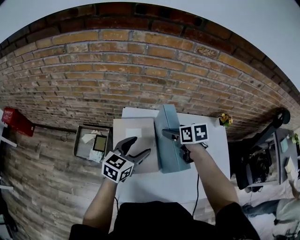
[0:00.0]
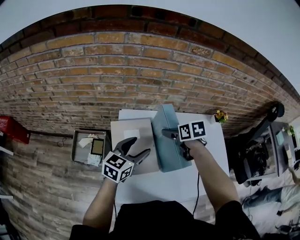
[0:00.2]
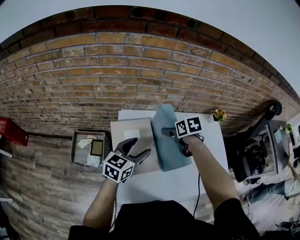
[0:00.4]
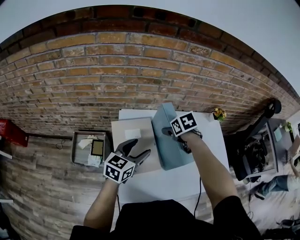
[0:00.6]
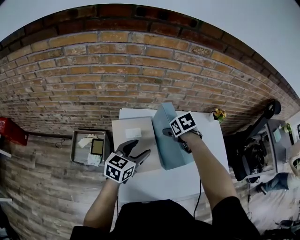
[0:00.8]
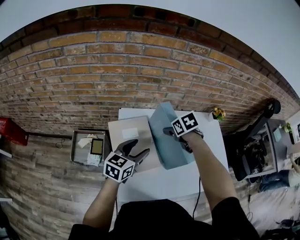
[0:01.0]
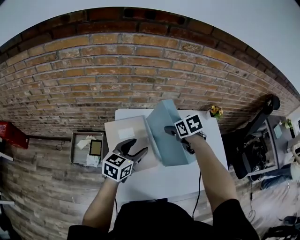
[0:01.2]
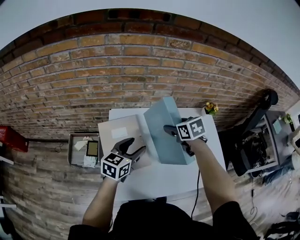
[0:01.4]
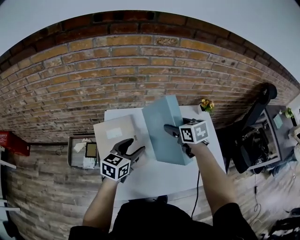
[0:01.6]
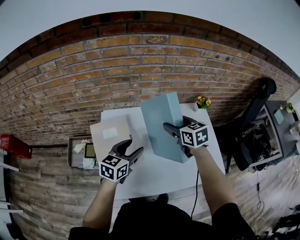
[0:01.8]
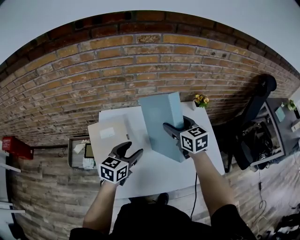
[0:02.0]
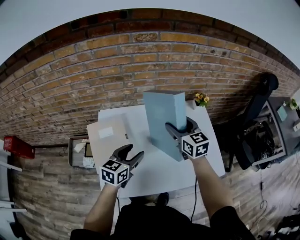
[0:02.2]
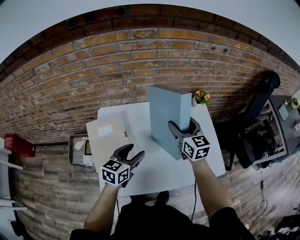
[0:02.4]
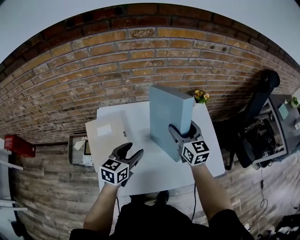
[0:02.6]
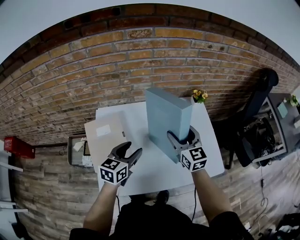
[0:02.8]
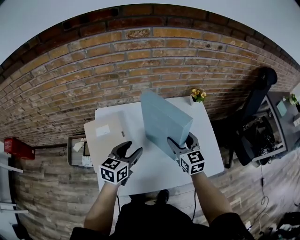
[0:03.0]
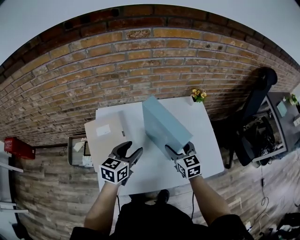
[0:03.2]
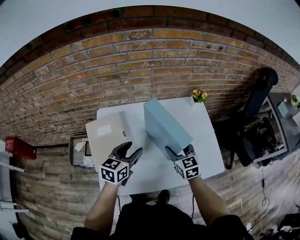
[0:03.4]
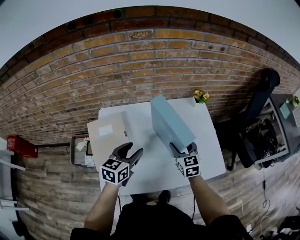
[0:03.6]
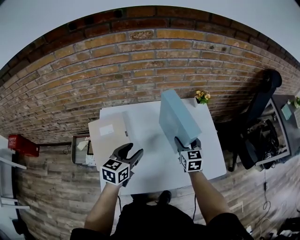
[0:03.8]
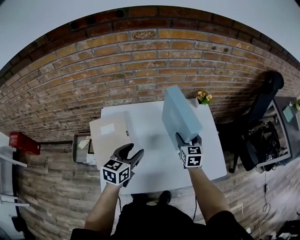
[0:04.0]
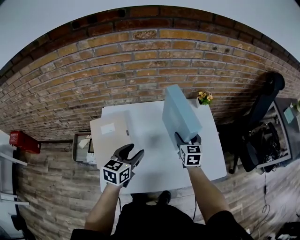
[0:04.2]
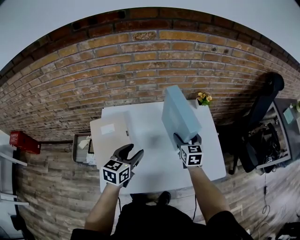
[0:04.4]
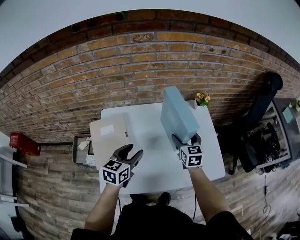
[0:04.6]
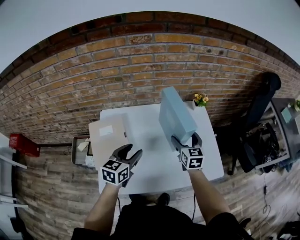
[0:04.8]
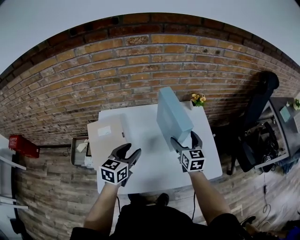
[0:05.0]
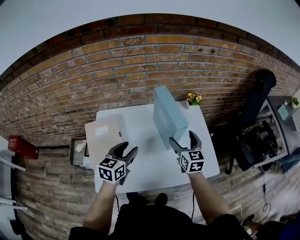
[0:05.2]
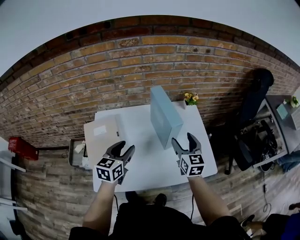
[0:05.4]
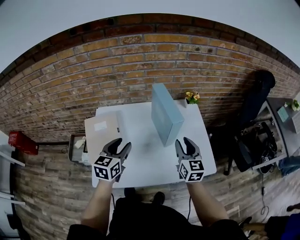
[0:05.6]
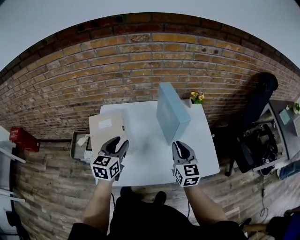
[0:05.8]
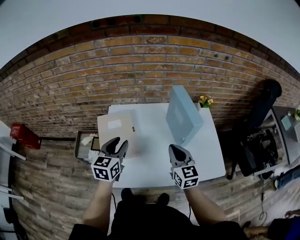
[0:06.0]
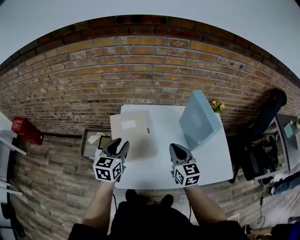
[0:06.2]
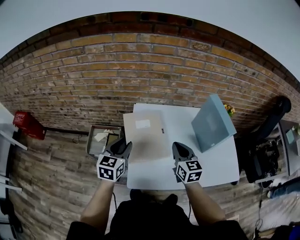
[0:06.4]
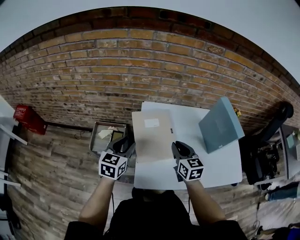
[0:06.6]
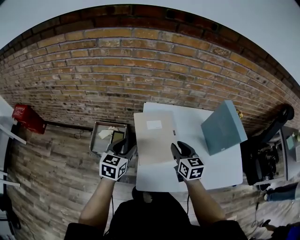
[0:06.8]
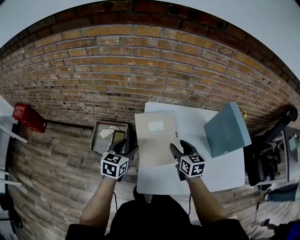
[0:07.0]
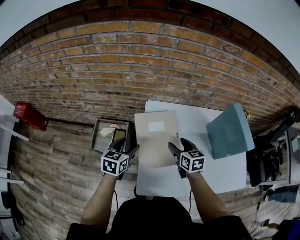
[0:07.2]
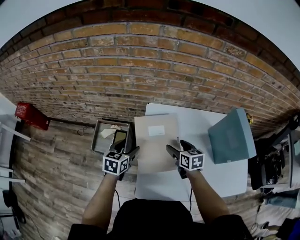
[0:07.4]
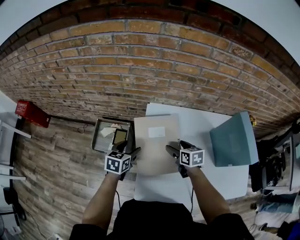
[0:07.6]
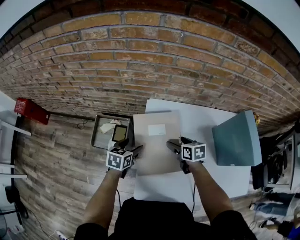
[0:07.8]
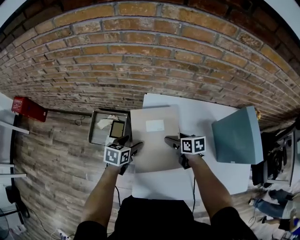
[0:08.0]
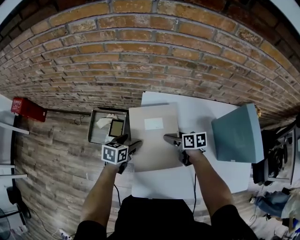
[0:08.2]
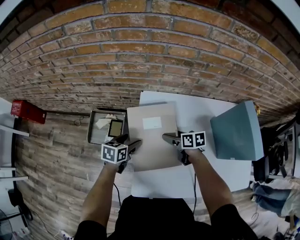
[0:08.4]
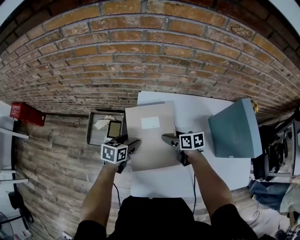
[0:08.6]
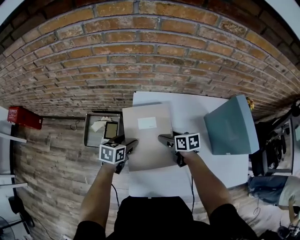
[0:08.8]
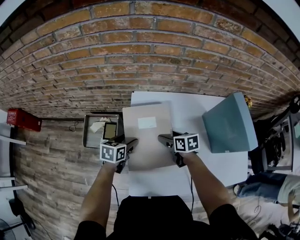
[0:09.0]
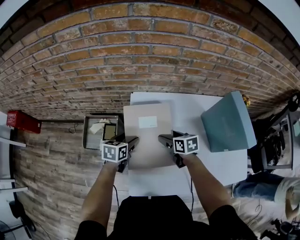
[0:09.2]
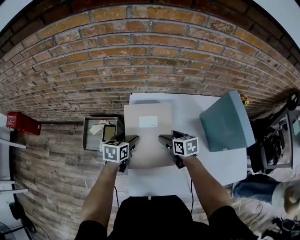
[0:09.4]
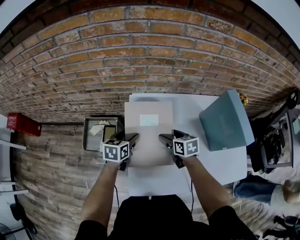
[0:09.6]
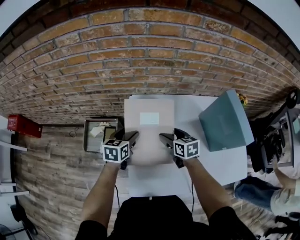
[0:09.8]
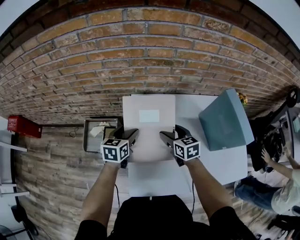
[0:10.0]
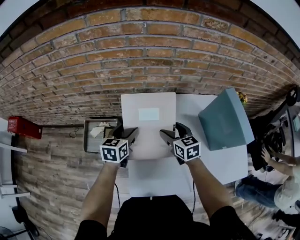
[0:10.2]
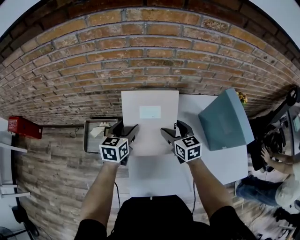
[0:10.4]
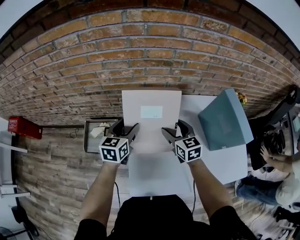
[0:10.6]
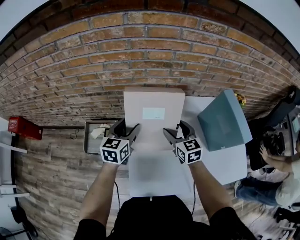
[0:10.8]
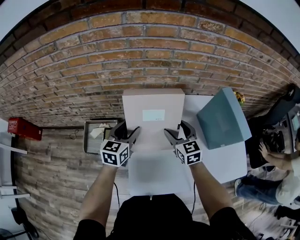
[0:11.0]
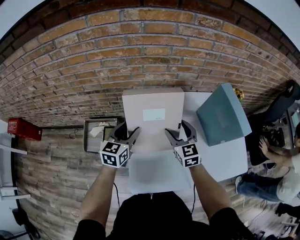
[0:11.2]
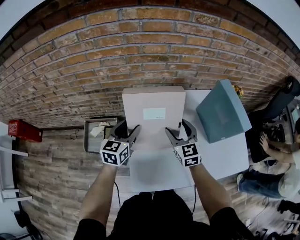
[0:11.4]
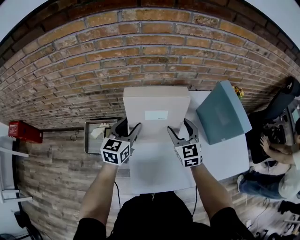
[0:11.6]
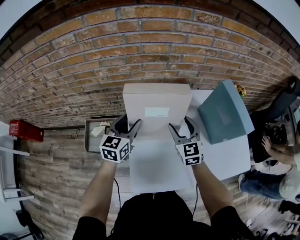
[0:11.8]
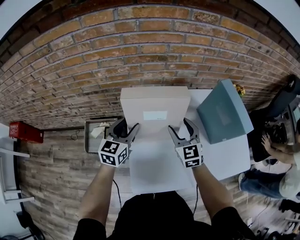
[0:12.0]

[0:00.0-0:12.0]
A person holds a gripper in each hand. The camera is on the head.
0:00.0 to 0:01.6: The two grippers go some 10 cm to the right.
0:01.6 to 0:03.0: The left gripper goes roughly 5 cm to the right; the right gripper shifts about 15 cm to the right and backward, and changes its angle by about 30 degrees.
0:03.0 to 0:04.4: The right gripper shifts by roughly 10 cm.
0:04.4 to 0:06.0: The right gripper moves backward, to the left and upward, roughly 15 cm, and closes its fingers. The left gripper travels to the left by approximately 10 cm.
0:06.0 to 0:07.6: Both grippers travel together to the left, downward and forward, roughly 30 cm. The right gripper angles its fingers downward, by about 30 degrees, and opens its fingers; the left gripper swivels about 20 degrees.
0:07.6 to 0:09.0: The left gripper moves roughly 5 cm.
0:09.0 to 0:10.4: The left gripper shifts approximately 10 cm upward and forward, and turns by about 20 degrees. The right gripper goes about 10 cm upward, and changes its angle by roughly 30 degrees.
0:10.4 to 0:12.0: The right gripper ends up about 5 cm from where it was, and swivels about 20 degrees.

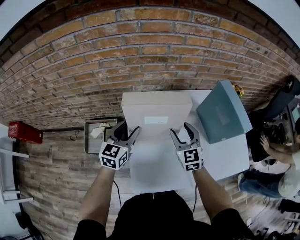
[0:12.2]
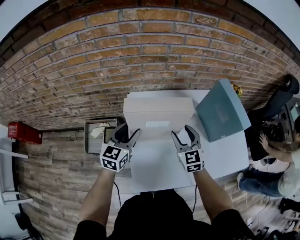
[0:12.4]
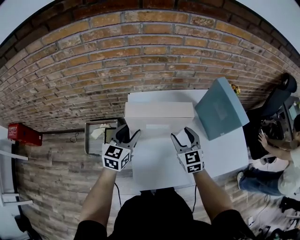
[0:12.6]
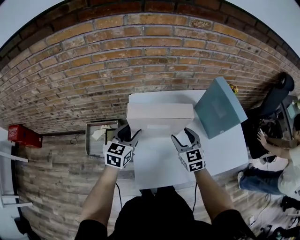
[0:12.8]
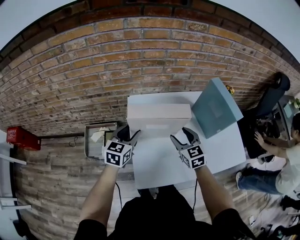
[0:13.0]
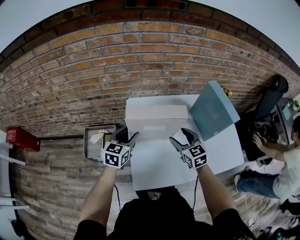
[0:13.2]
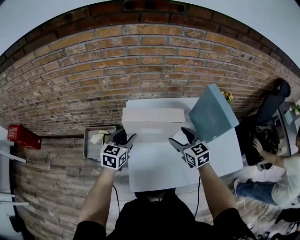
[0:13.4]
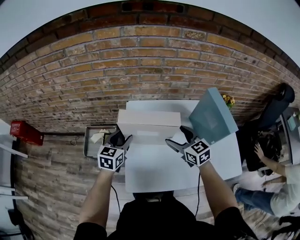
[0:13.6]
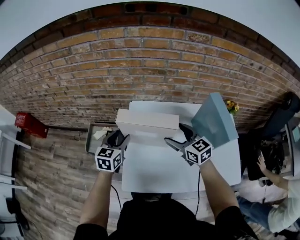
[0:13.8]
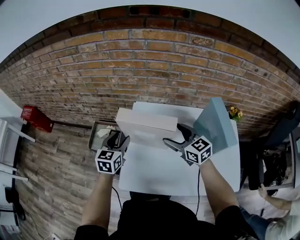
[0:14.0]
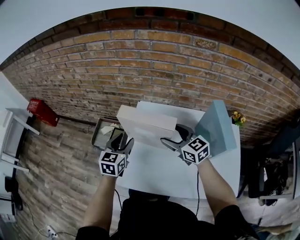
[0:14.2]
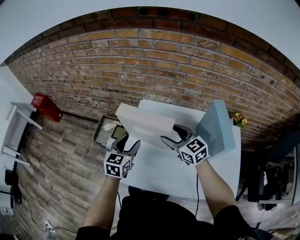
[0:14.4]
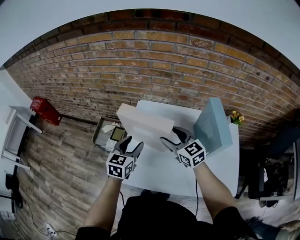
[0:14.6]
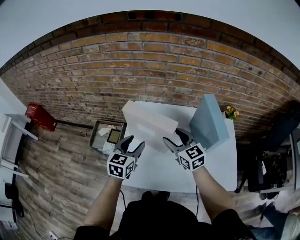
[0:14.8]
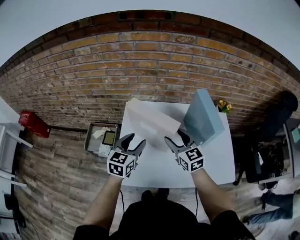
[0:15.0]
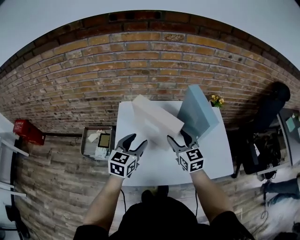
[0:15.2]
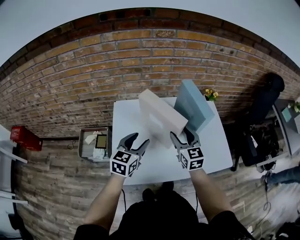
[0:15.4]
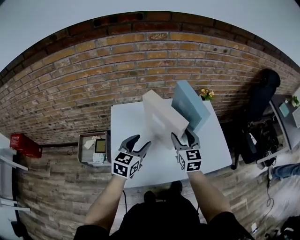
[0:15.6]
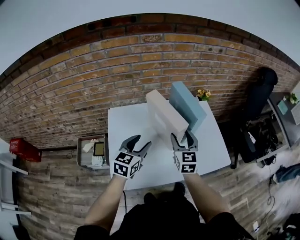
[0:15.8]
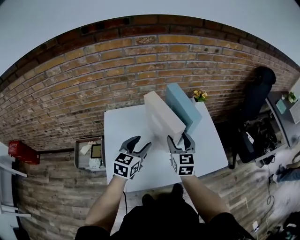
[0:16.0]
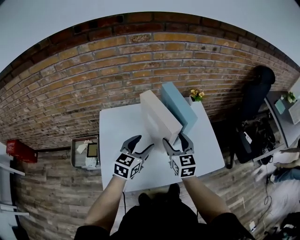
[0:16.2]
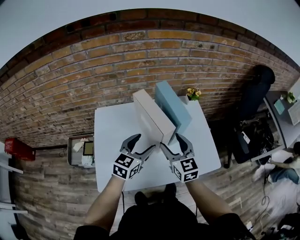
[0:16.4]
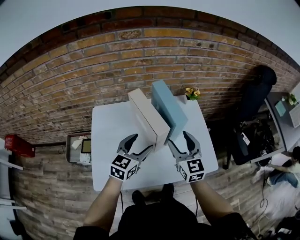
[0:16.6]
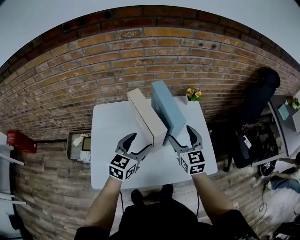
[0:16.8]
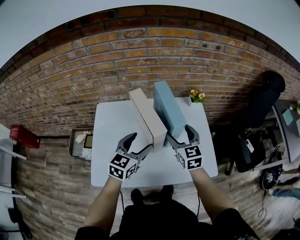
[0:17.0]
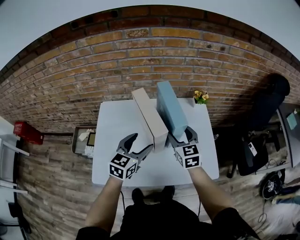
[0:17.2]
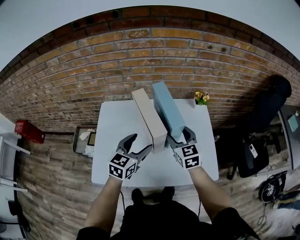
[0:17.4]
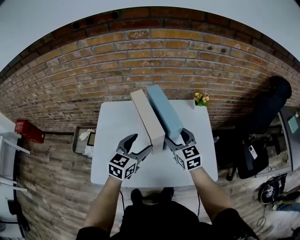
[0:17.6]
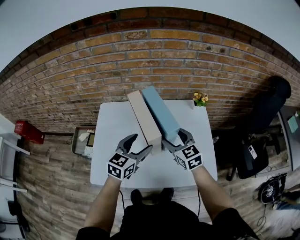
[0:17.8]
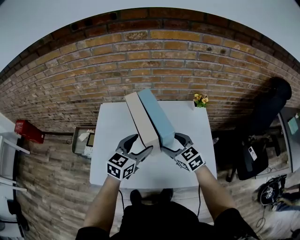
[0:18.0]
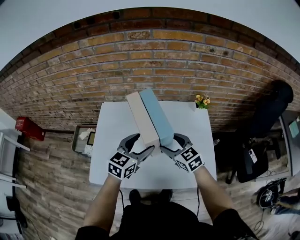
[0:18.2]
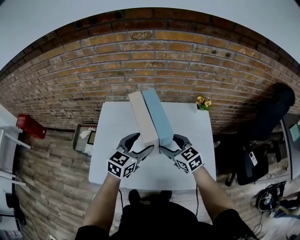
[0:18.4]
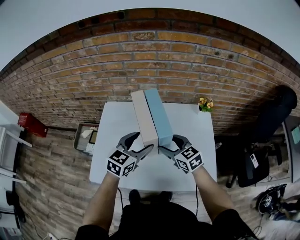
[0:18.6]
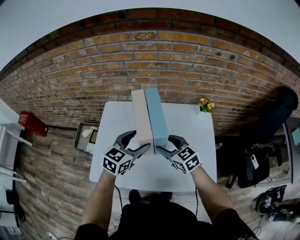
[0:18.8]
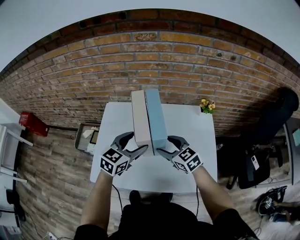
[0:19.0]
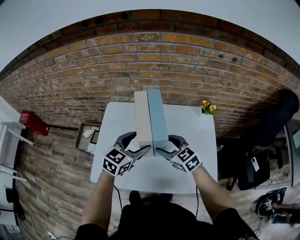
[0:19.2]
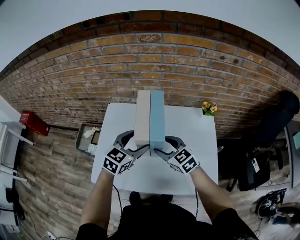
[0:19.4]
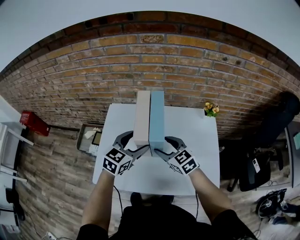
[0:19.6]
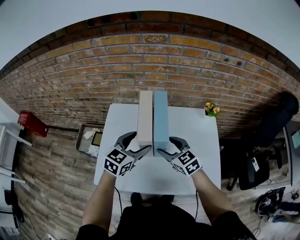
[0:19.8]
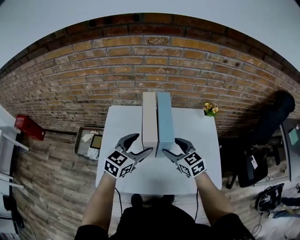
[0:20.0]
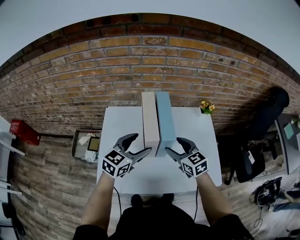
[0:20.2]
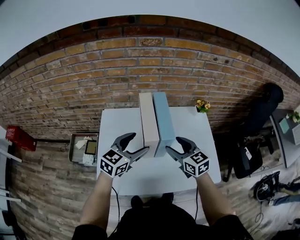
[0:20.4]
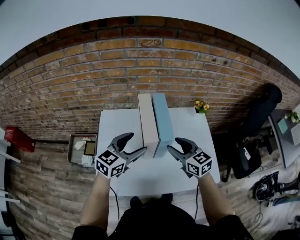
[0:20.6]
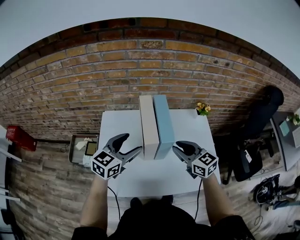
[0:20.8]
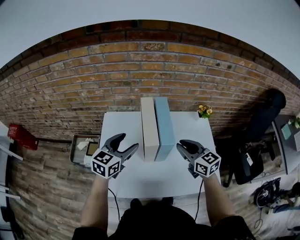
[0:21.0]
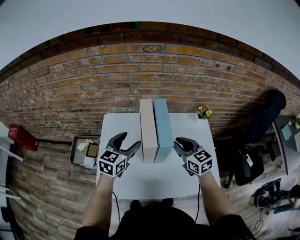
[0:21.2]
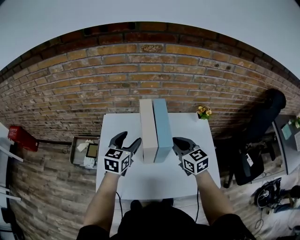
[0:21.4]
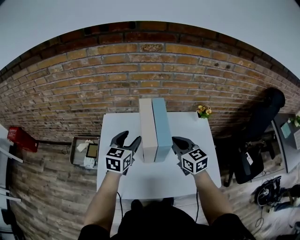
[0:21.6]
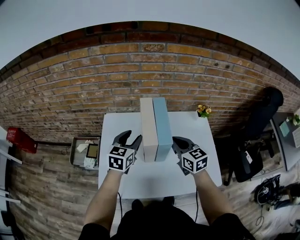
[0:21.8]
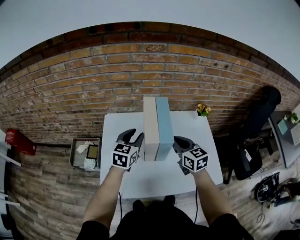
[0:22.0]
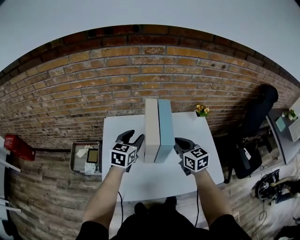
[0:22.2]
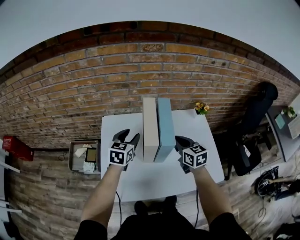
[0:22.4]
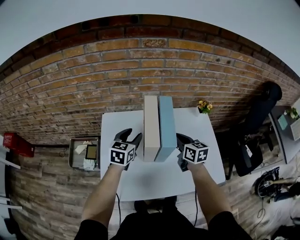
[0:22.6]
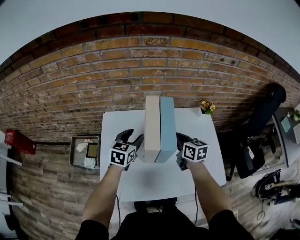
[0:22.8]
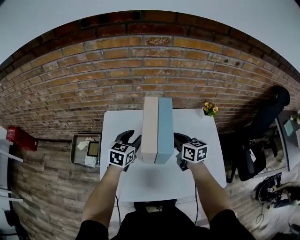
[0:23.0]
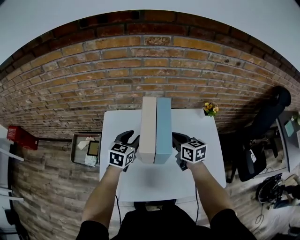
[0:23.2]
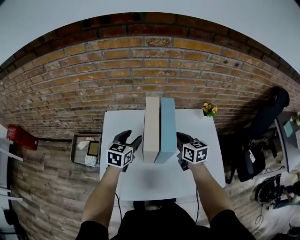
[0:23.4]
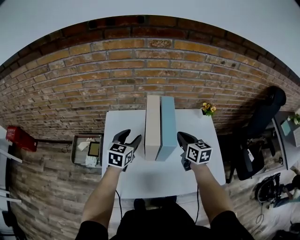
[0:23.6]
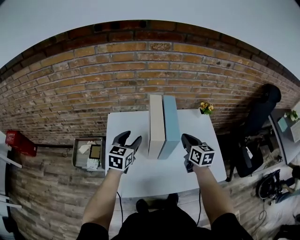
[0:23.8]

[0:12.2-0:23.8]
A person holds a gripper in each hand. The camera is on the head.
0:12.2 to 0:13.6: The right gripper swivels about 20 degrees.
0:13.6 to 0:15.0: The left gripper goes some 15 cm backward, to the right and upward. Meanwhile the right gripper moves about 5 cm.
0:15.0 to 0:16.6: The left gripper changes place by about 20 cm, and turns by approximately 20 degrees. Meanwhile the right gripper ends up about 20 cm from where it was, and changes its angle by about 20 degrees.
0:16.6 to 0:18.0: The right gripper goes some 5 cm downward, and swivels about 40 degrees.
0:18.0 to 0:19.4: The right gripper travels to the left by roughly 5 cm.
0:19.4 to 0:21.0: The left gripper is displaced to the left by roughly 10 cm; the right gripper heads upward and to the right, covering approximately 10 cm, and turns by about 20 degrees.
0:21.0 to 0:22.4: The left gripper shifts approximately 10 cm forward and downward, while the right gripper changes place by approximately 5 cm.
0:22.4 to 0:23.8: The grippers make only small movements.
